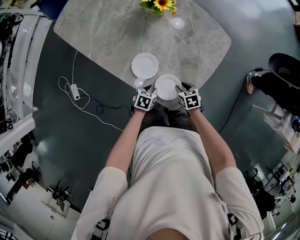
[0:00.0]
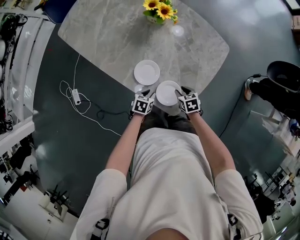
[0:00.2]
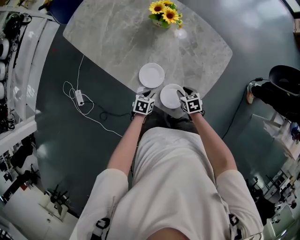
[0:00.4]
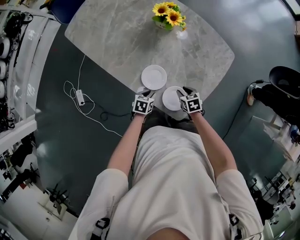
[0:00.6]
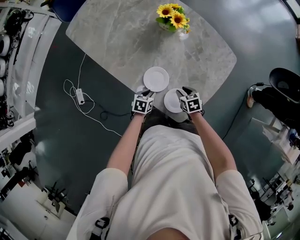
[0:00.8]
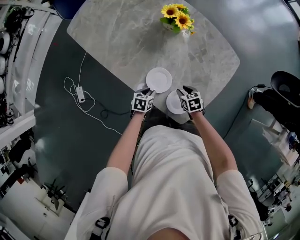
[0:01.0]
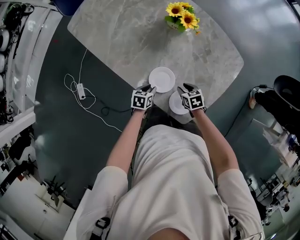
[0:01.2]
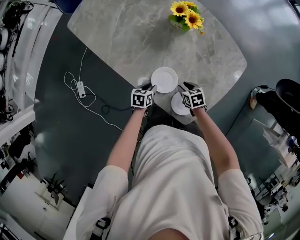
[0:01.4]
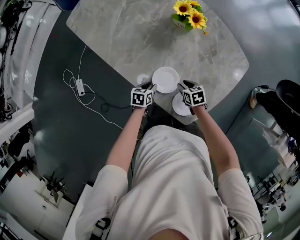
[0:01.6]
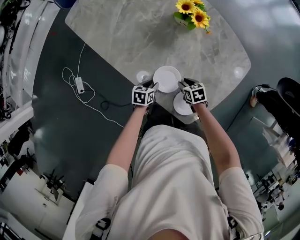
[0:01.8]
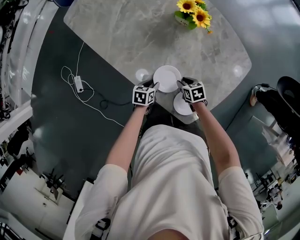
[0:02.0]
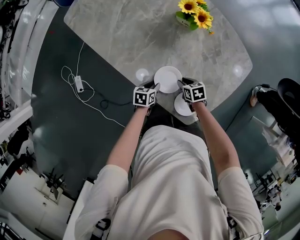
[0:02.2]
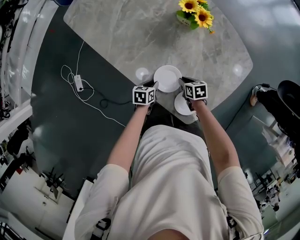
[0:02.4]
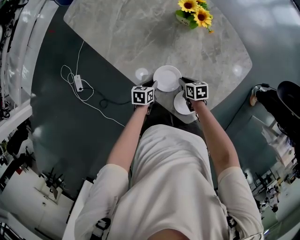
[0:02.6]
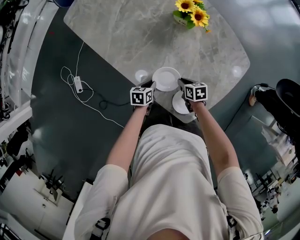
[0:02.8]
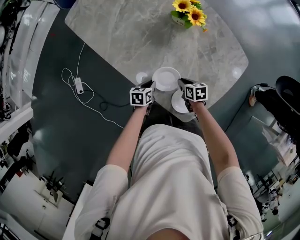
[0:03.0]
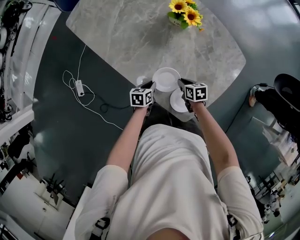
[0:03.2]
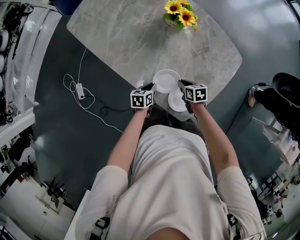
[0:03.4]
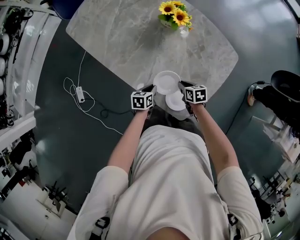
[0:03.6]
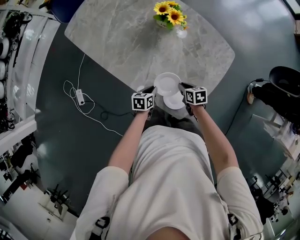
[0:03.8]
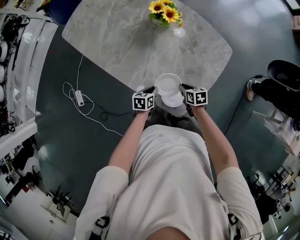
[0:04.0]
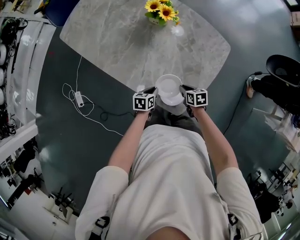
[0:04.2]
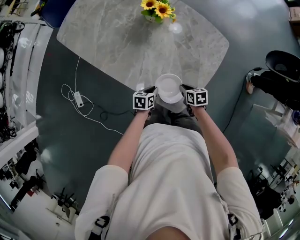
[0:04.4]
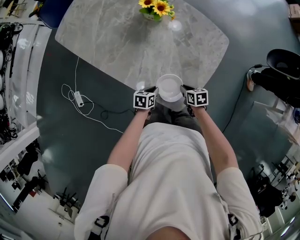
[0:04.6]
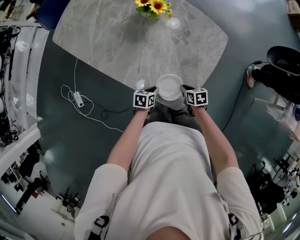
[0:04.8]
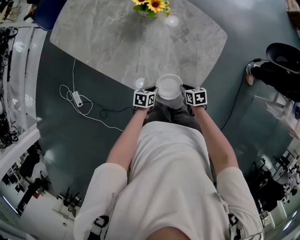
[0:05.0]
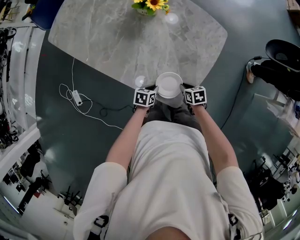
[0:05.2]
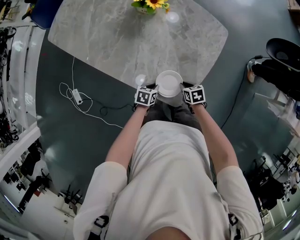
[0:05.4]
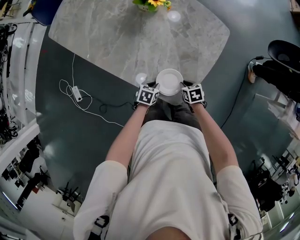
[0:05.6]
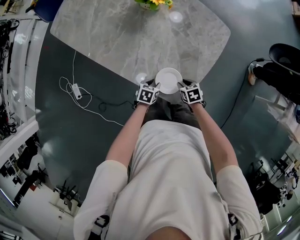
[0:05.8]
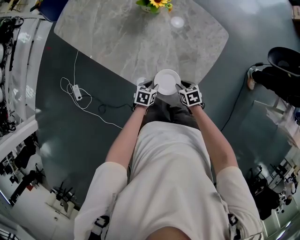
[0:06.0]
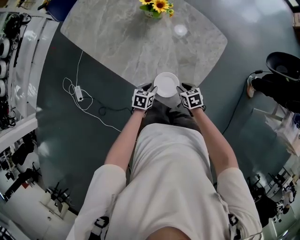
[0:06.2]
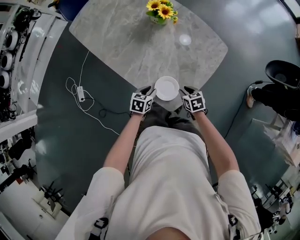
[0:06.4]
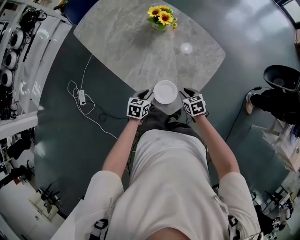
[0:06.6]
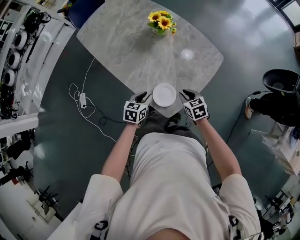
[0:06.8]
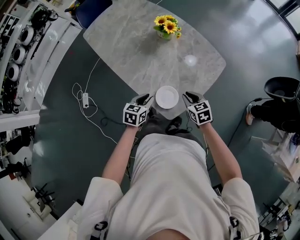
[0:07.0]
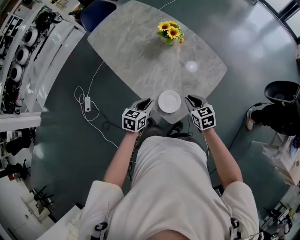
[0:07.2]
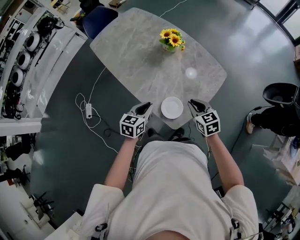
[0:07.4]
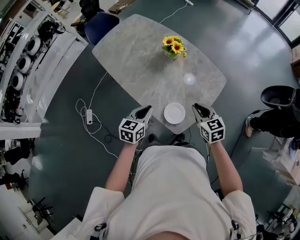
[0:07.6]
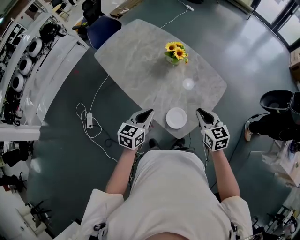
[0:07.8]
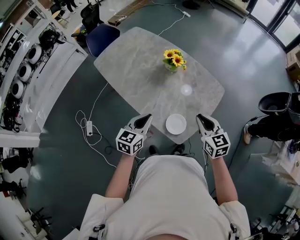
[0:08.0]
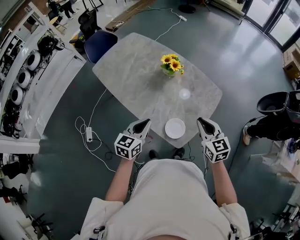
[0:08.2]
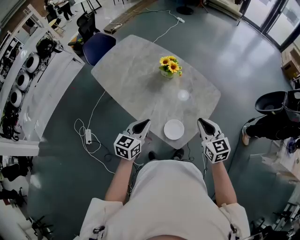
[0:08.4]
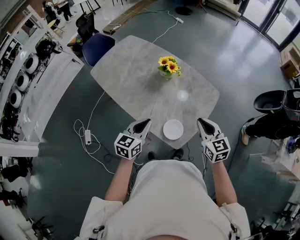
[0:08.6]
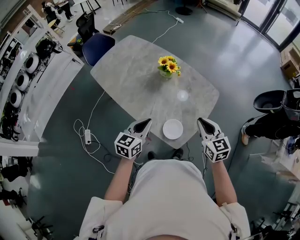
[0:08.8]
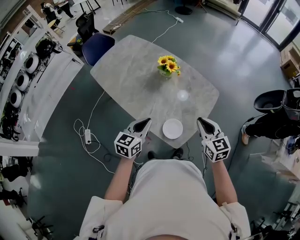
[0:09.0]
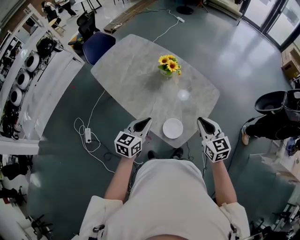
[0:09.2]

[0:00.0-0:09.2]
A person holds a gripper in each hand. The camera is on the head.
0:00.0 to 0:01.6: Both grippers move to the left and forward, approximately 15 cm. The left gripper swivels some 20 degrees.
0:01.6 to 0:03.0: The right gripper closes up.
0:03.0 to 0:04.6: The right gripper travels backward and to the right by about 15 cm. Meanwhile the left gripper goes roughly 15 cm to the right and backward.
0:04.6 to 0:06.2: The left gripper opens its fingers.
0:06.2 to 0:07.6: The grippers both shift upward by approximately 30 cm. The left gripper rotates about 30 degrees, and closes its fingers. The right gripper swivels some 30 degrees.
0:07.6 to 0:09.2: The grippers both shift upward by roughly 10 cm.

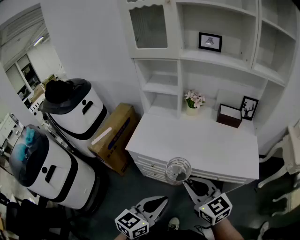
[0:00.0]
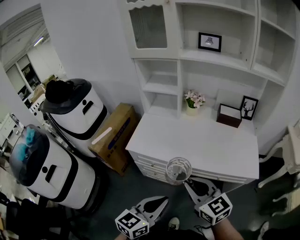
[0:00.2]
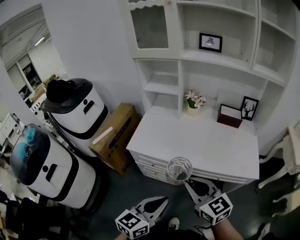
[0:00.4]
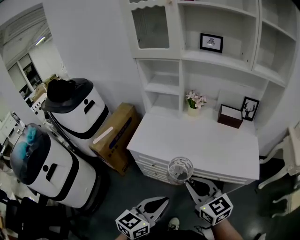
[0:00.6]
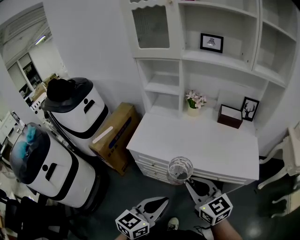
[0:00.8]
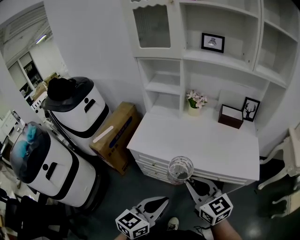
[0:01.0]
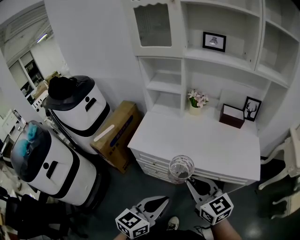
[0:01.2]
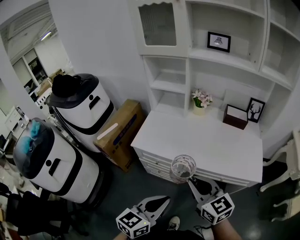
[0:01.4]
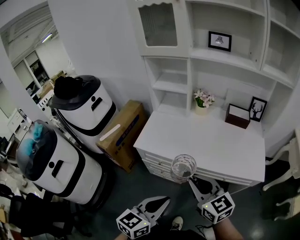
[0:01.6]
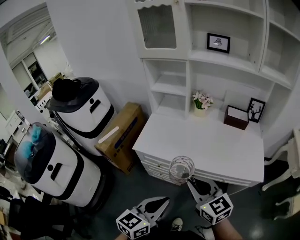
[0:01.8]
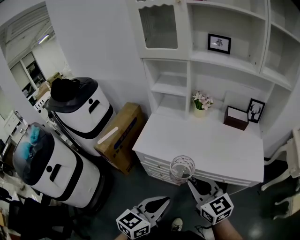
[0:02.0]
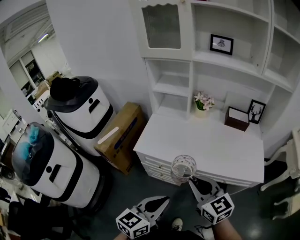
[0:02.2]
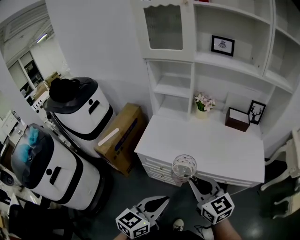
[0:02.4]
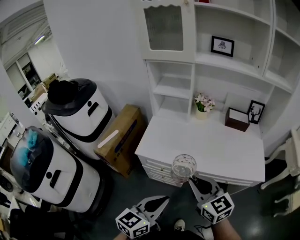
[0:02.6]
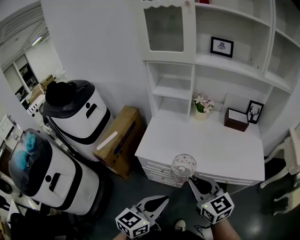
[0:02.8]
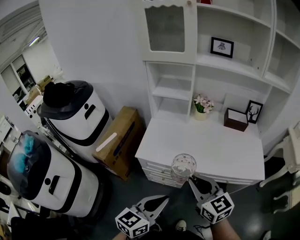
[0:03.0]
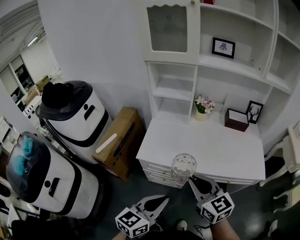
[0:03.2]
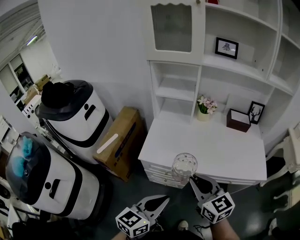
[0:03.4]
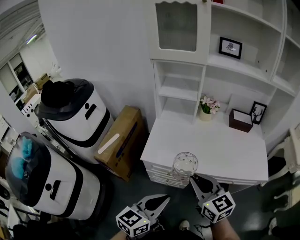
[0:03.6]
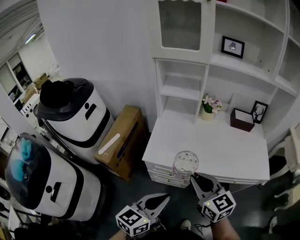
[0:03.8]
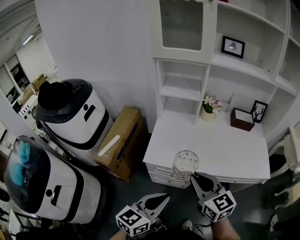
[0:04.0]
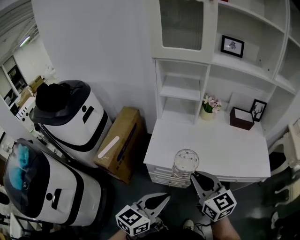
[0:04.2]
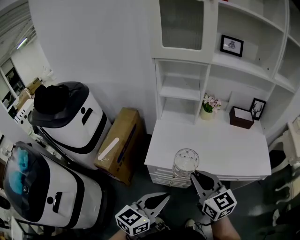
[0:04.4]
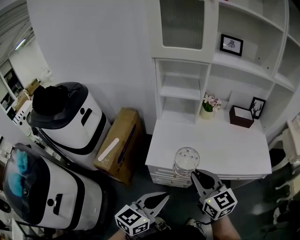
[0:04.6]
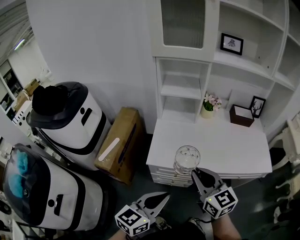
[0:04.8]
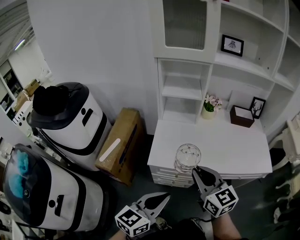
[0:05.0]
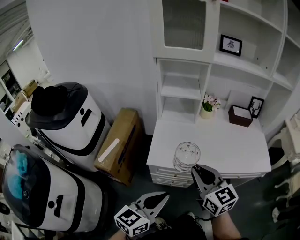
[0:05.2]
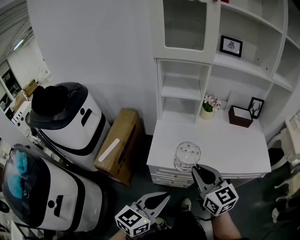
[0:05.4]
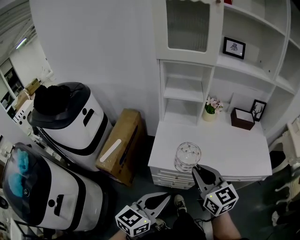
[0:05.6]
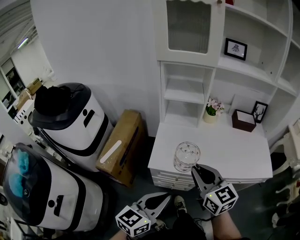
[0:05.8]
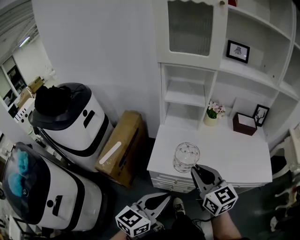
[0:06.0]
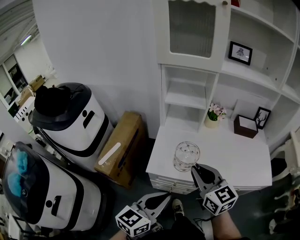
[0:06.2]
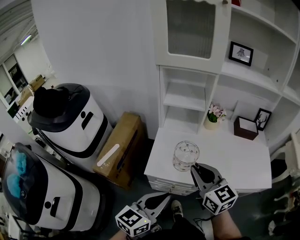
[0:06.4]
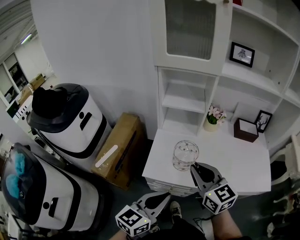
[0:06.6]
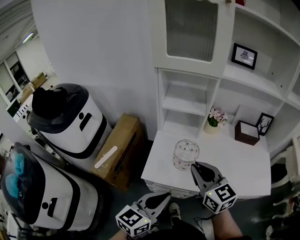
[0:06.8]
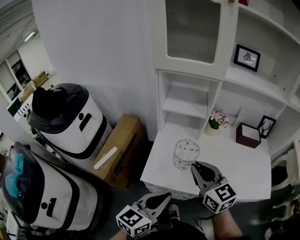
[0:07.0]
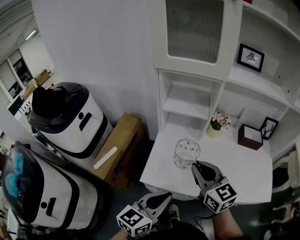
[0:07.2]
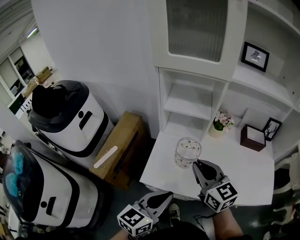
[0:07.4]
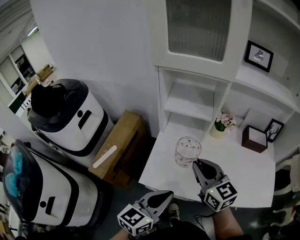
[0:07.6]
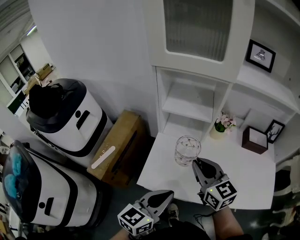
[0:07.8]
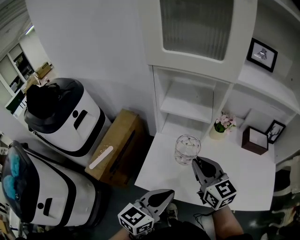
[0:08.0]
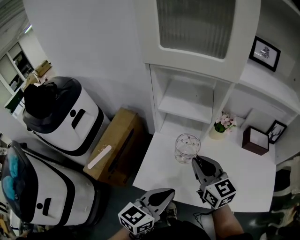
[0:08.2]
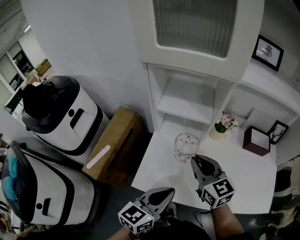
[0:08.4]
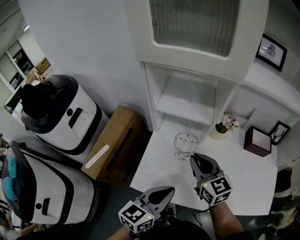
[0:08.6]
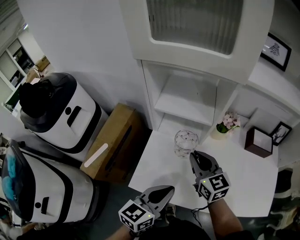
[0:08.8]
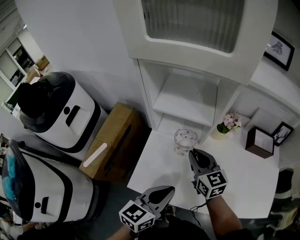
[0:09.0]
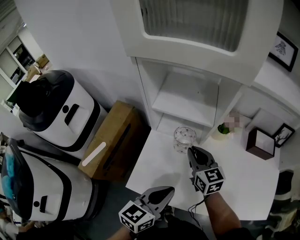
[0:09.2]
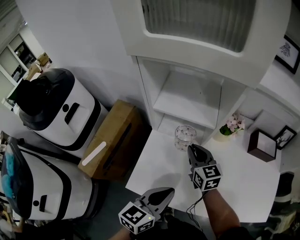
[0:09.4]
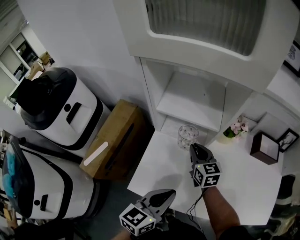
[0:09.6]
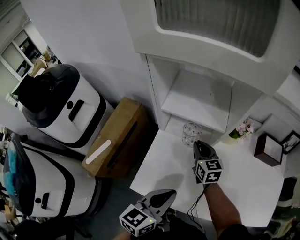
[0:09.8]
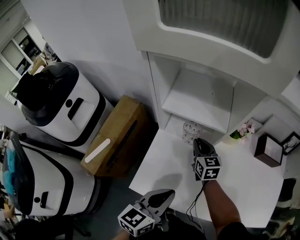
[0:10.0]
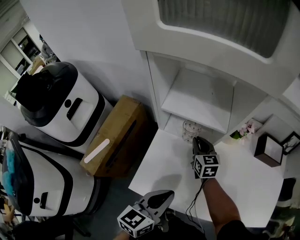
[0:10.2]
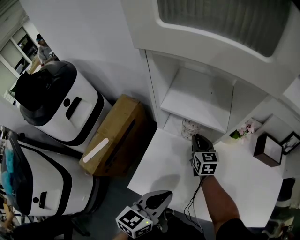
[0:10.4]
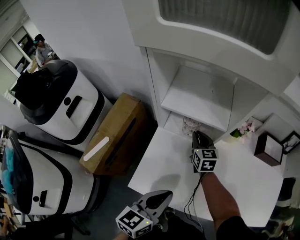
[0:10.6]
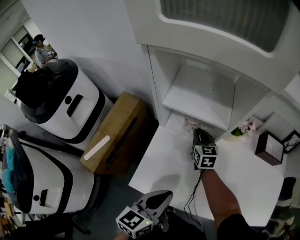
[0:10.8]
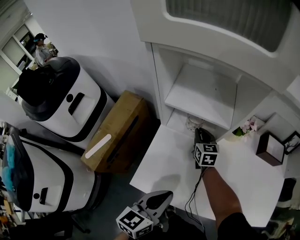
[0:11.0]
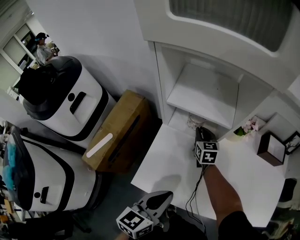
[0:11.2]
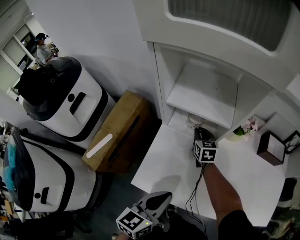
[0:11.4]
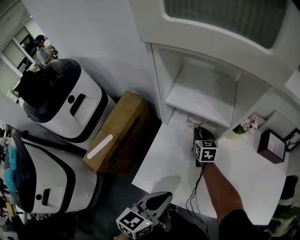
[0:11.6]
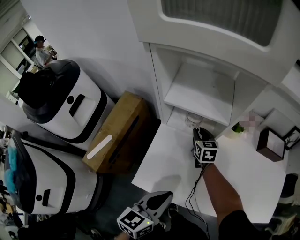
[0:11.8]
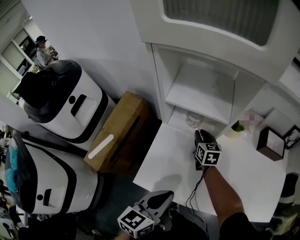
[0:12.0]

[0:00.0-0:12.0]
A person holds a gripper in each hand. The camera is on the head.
0:00.0 to 0:01.6: Neither gripper changes place.
0:01.6 to 0:03.0: The grippers both shift to the left by some 10 cm.
0:03.0 to 0:04.4: Both grippers move to the left and forward, roughly 10 cm.
0:04.4 to 0:06.0: The right gripper moves some 5 cm.
0:06.0 to 0:07.6: The grippers both shift forward by some 15 cm.
0:07.6 to 0:09.0: The two grippers go approximately 15 cm forward and downward.
0:09.0 to 0:10.4: The right gripper is displaced downward and forward by approximately 15 cm.
0:10.4 to 0:12.0: The grippers make only small movements.

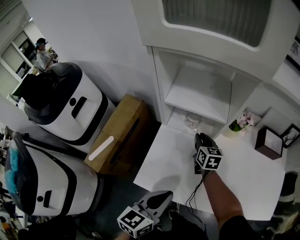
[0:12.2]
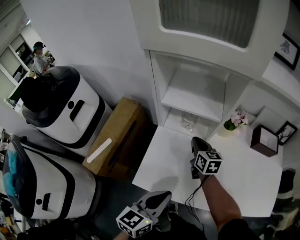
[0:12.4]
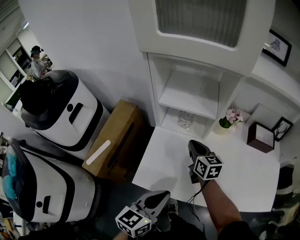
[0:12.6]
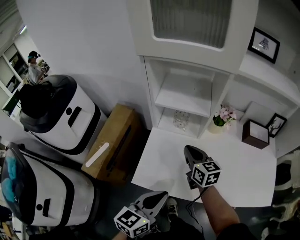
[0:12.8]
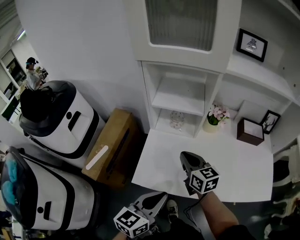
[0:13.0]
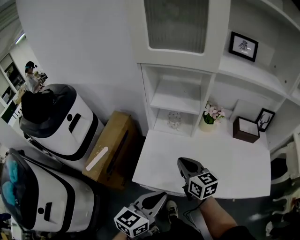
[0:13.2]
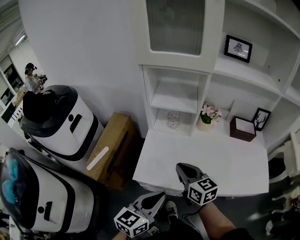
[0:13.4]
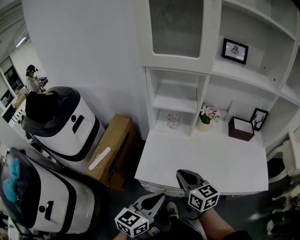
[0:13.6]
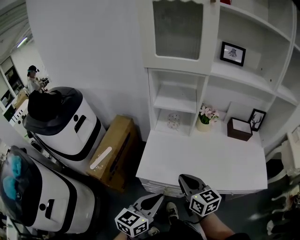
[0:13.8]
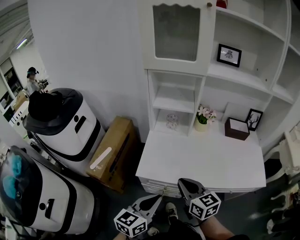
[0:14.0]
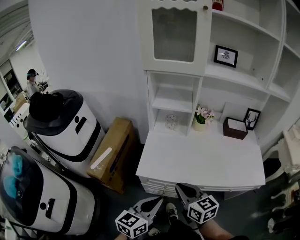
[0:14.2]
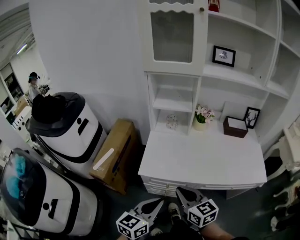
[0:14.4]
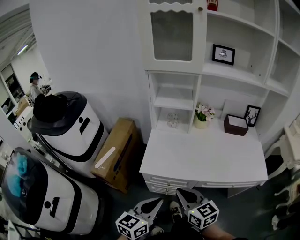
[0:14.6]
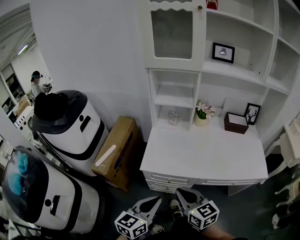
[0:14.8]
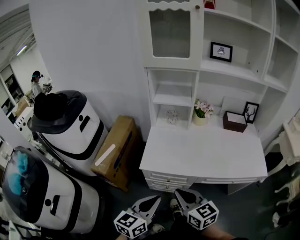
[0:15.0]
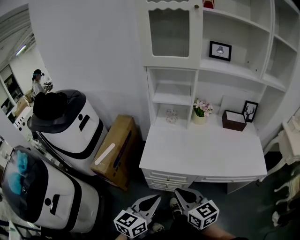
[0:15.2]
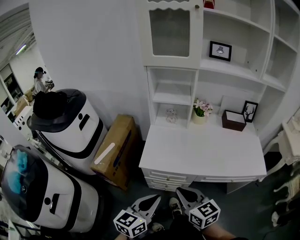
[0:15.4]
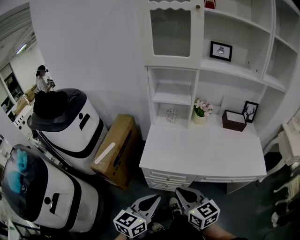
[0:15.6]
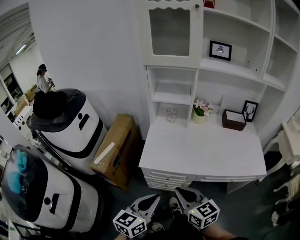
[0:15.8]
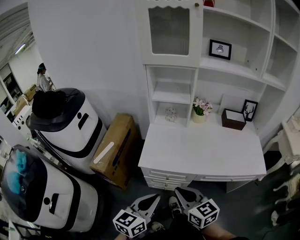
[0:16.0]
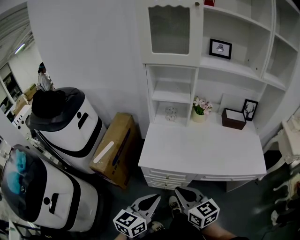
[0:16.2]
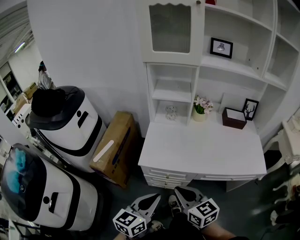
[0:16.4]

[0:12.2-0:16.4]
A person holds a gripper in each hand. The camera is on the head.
0:12.2 to 0:13.6: The left gripper heads backward, covering some 15 cm; the right gripper heads backward and upward, covering approximately 35 cm.
0:13.6 to 0:15.0: The left gripper shifts roughly 10 cm backward; the right gripper goes some 20 cm backward.
0:15.0 to 0:16.4: Neither gripper changes place.
